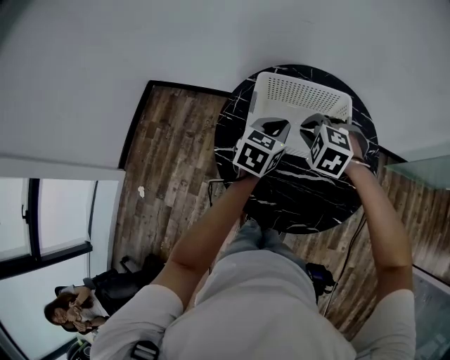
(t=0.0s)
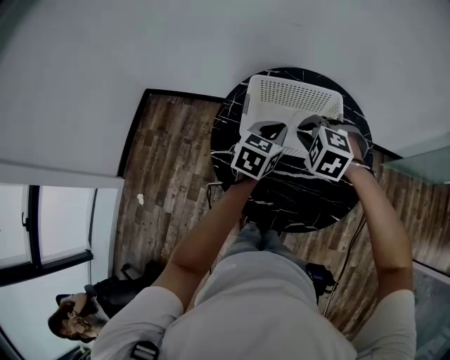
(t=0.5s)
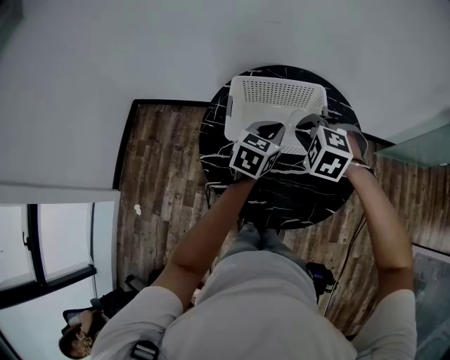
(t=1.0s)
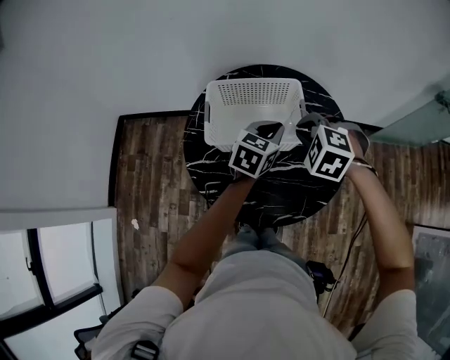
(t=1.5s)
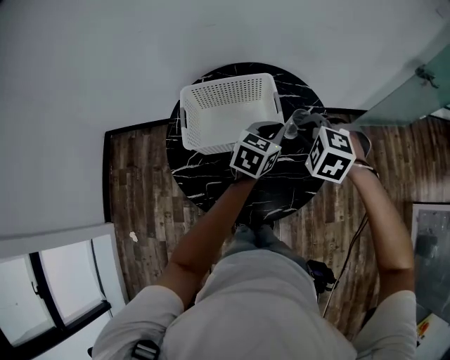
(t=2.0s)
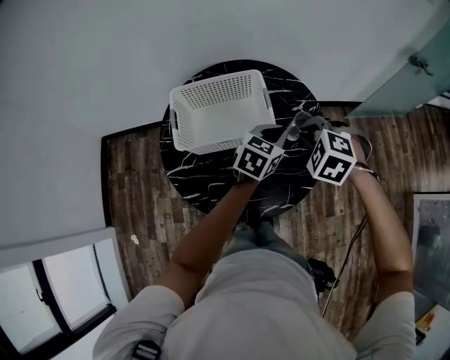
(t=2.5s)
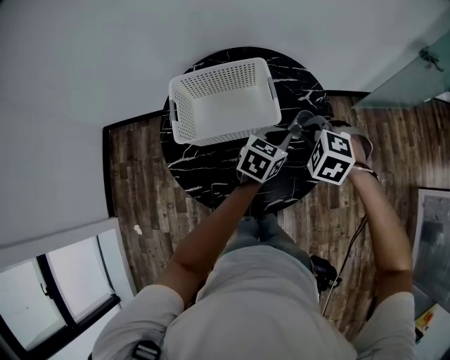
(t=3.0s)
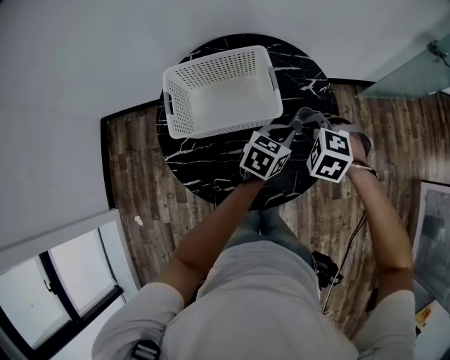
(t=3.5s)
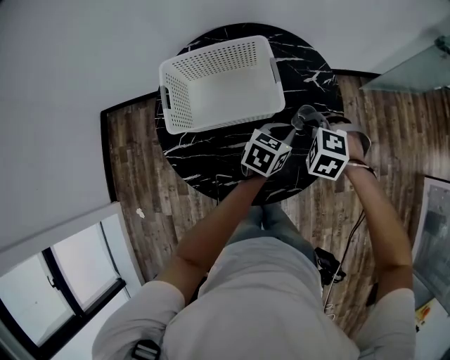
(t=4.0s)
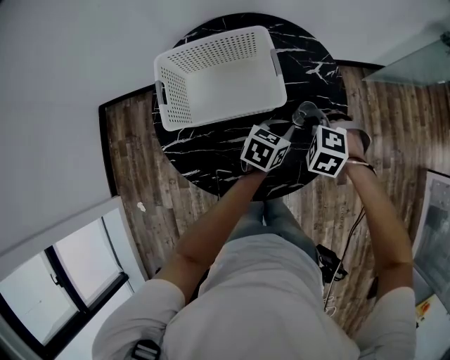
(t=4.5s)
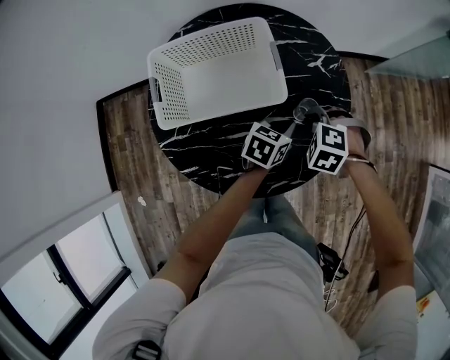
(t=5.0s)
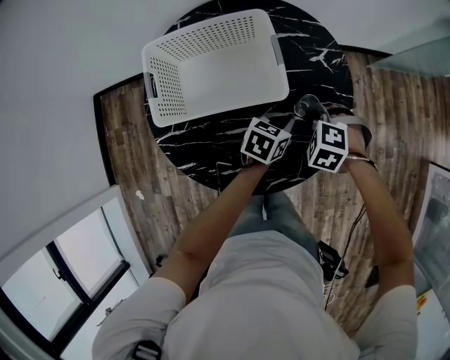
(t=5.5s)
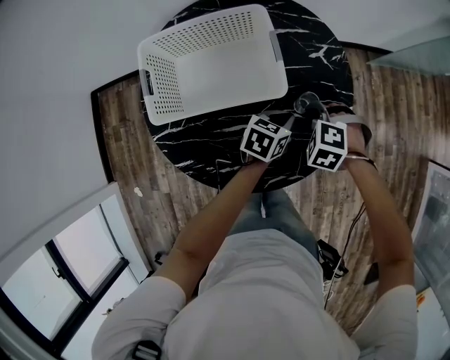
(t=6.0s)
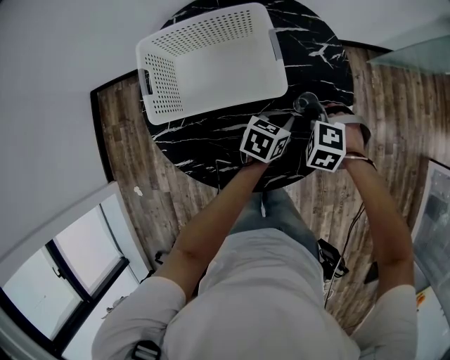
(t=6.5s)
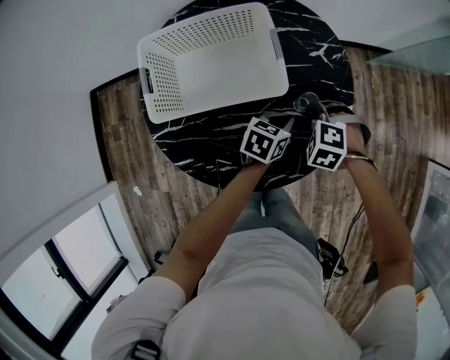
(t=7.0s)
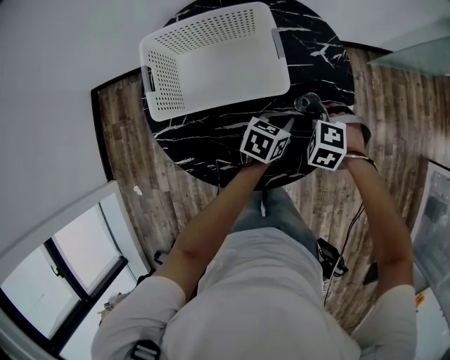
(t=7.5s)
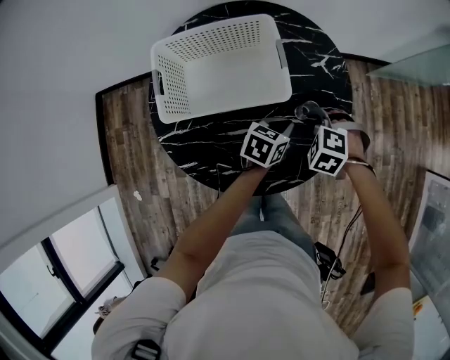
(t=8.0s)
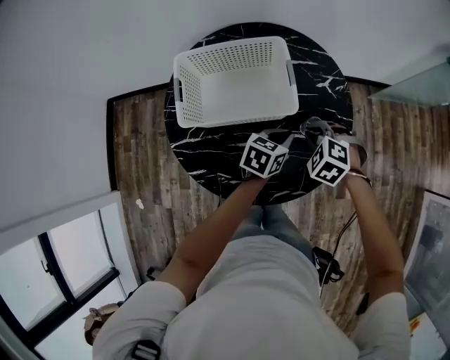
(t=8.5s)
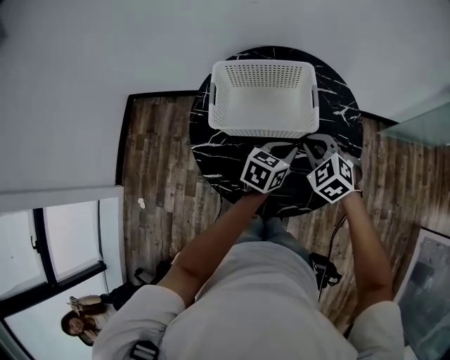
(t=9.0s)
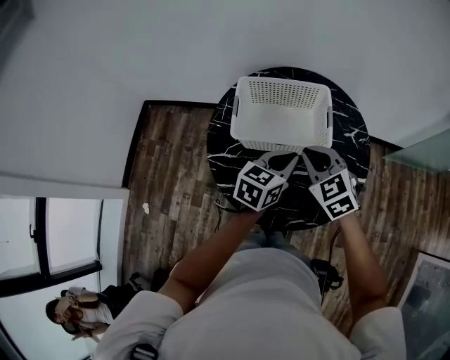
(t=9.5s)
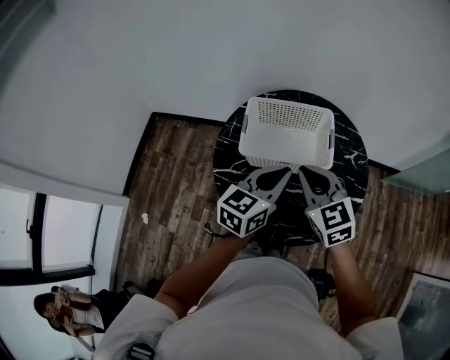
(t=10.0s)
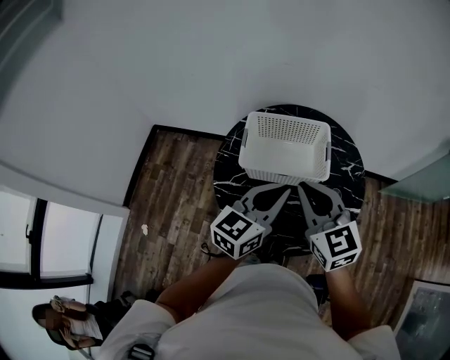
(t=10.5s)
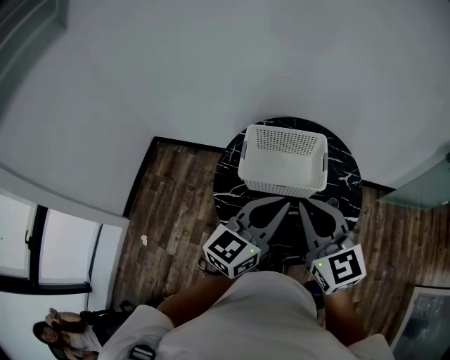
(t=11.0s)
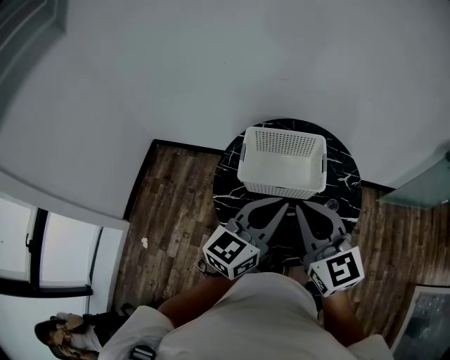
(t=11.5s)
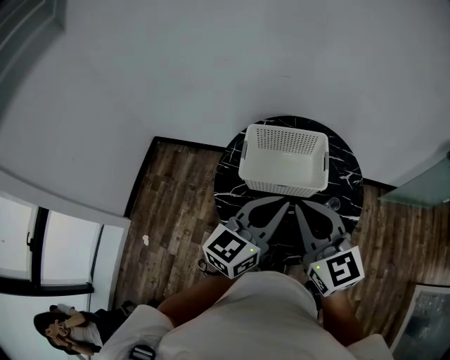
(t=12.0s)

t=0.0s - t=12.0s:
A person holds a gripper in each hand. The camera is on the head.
t=0.0s - t=2.0s: The grippers both shift to the right by approximately 20 cm. The left gripper changes its angle by approximately 20 degrees.
t=2.0s - t=4.0s: The left gripper shifts approximately 15 cm downward and to the right; the right gripper is displaced downward by some 15 cm.
t=4.0s - t=6.0s: The two grippers go some 10 cm downward.
t=6.0s - t=8.0s: The grippers make only small movements.
t=8.0s - t=10.0s: Both grippers move upward and to the left, approximately 35 cm. The left gripper rotates roughly 40 degrees; the right gripper points its fingers approximately 50 degrees further upward.
t=10.0s - t=12.0s: The right gripper goes approximately 15 cm upward and backward, while the left gripper is displaced upward by about 10 cm.

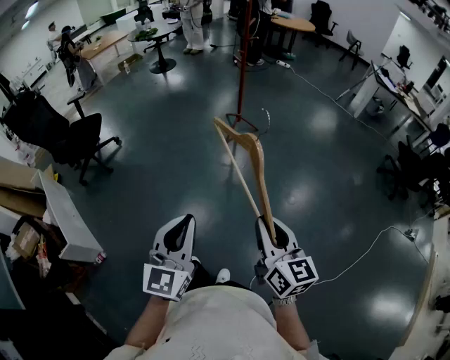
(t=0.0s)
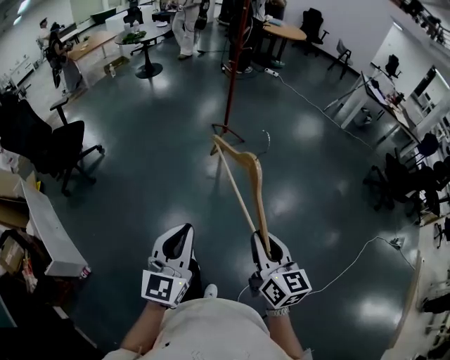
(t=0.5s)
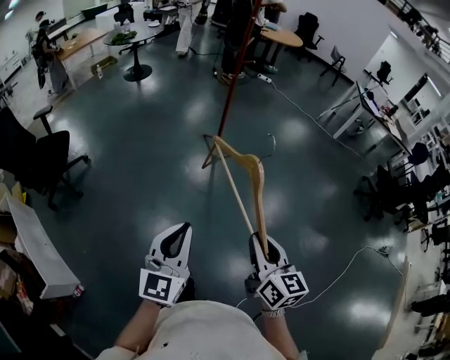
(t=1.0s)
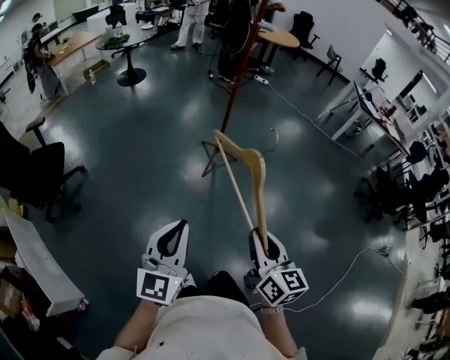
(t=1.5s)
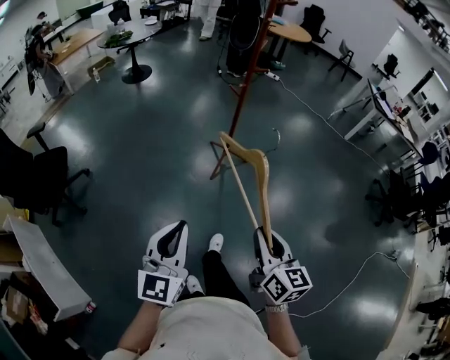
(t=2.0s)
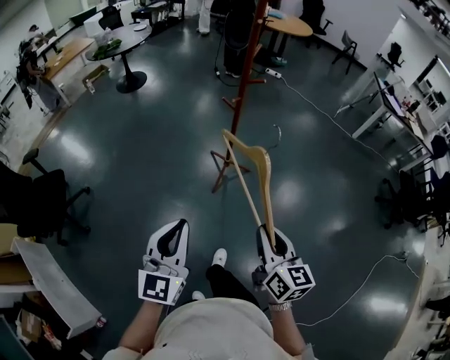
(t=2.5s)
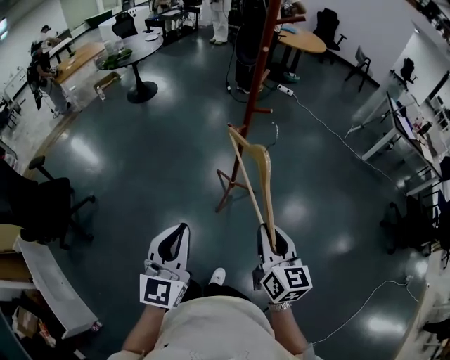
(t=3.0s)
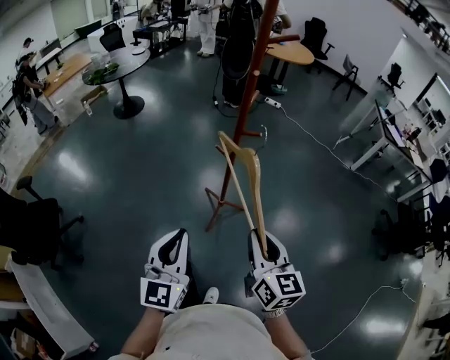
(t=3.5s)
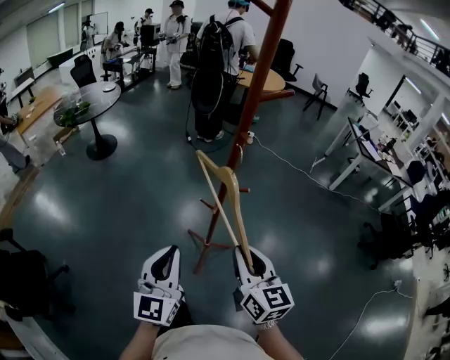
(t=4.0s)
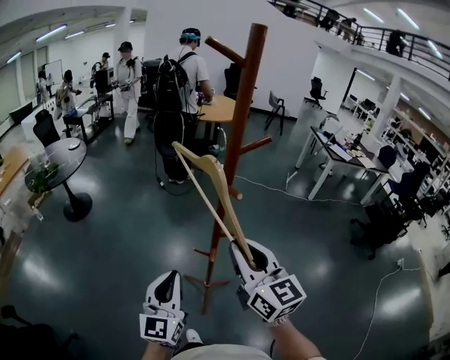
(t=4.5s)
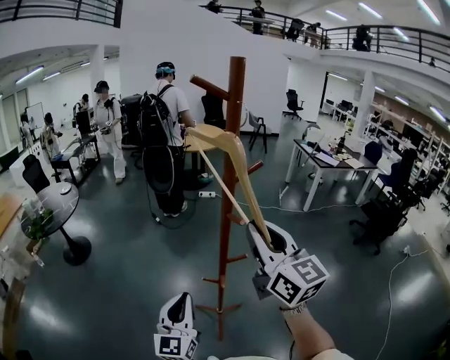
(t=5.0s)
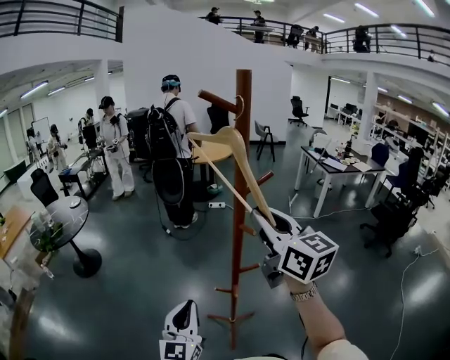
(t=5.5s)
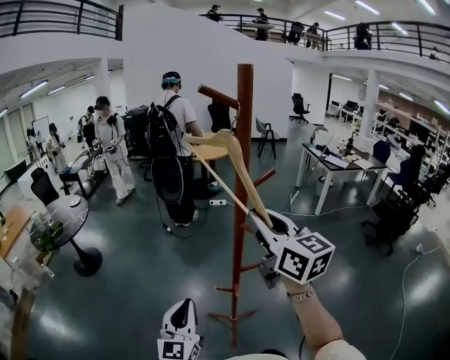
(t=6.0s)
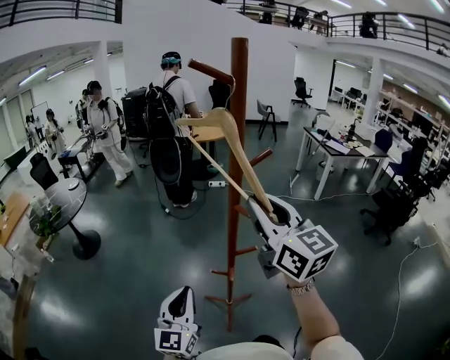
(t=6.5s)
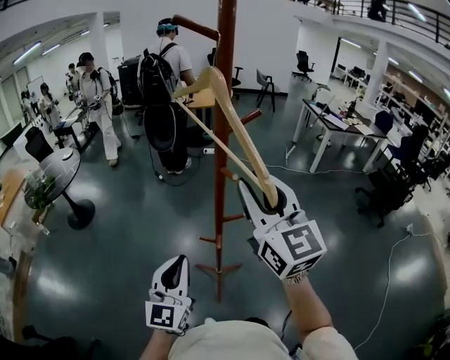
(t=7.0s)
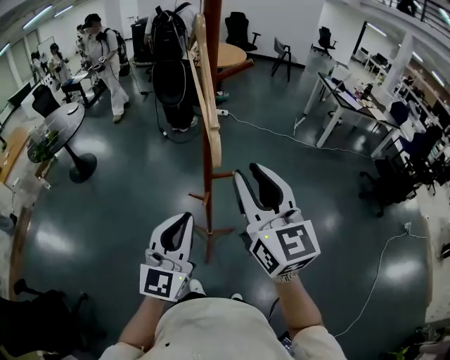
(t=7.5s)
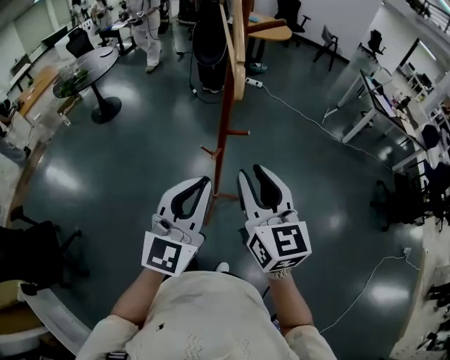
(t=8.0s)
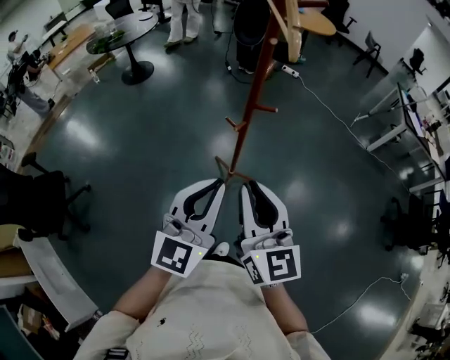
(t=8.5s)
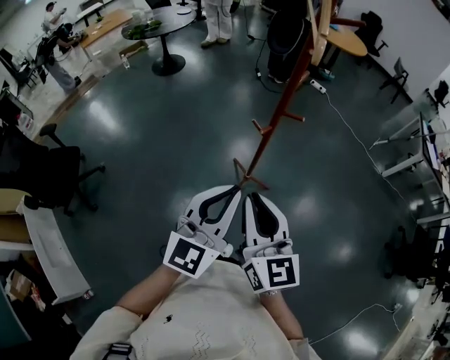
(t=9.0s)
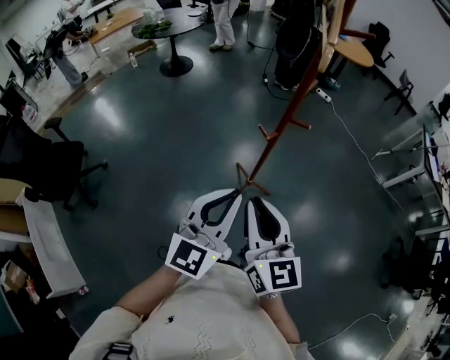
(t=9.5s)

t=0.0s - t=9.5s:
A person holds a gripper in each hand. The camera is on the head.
t=0.0s - t=2.0s: The pair of grippers is taken forward, about 50 cm.
t=2.0s - t=4.0s: The two grippers travel together, forward, roughly 50 cm.
t=4.0s - t=5.5s: The right gripper moves upward and forward, about 30 cm. Meanwhile the left gripper moves forward, some 15 cm.
t=5.5s - t=7.5s: The right gripper is displaced backward, downward and to the right by about 15 cm. The left gripper shifts about 15 cm to the right and backward.
t=7.5s - t=9.5s: The left gripper changes place by roughly 15 cm, and swivels about 20 degrees; the right gripper shifts by roughly 25 cm, and swivels approximately 30 degrees.

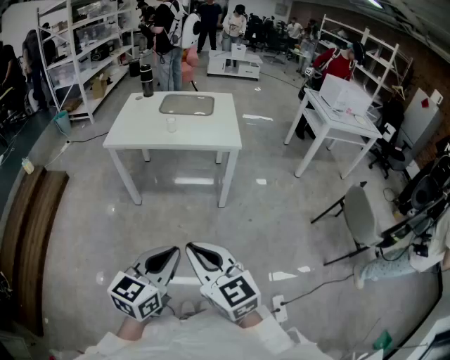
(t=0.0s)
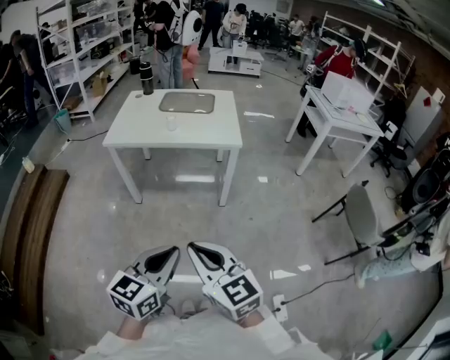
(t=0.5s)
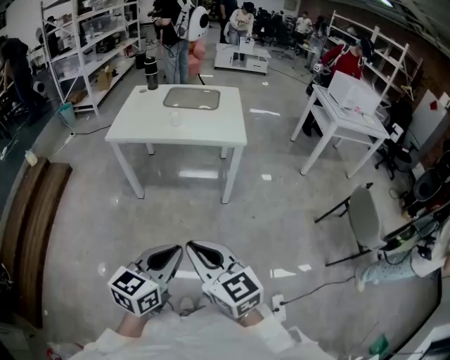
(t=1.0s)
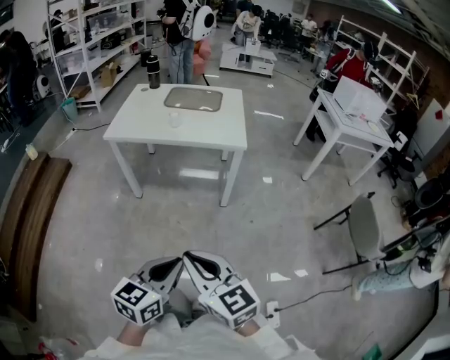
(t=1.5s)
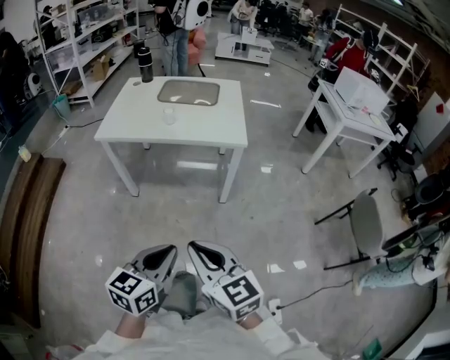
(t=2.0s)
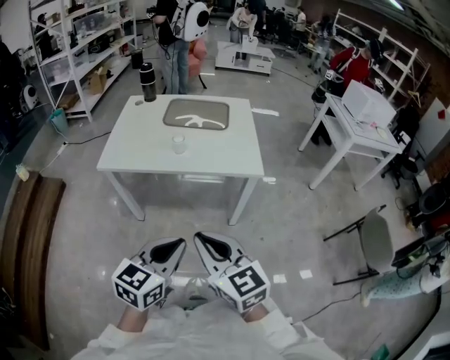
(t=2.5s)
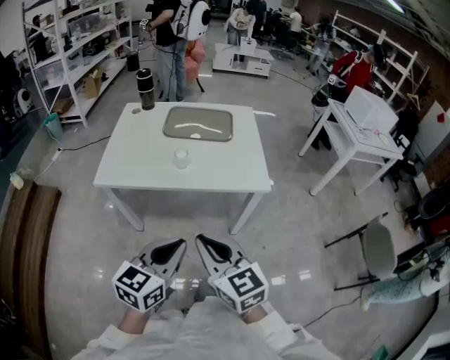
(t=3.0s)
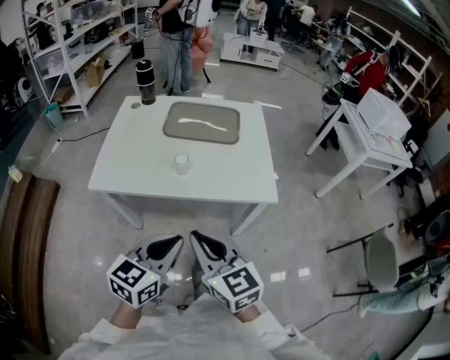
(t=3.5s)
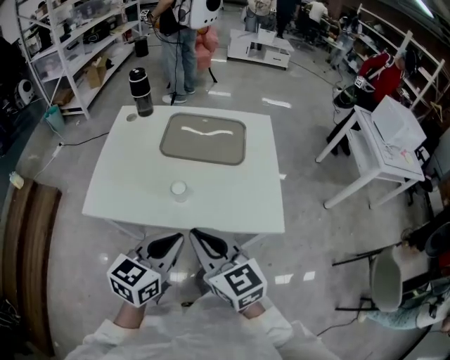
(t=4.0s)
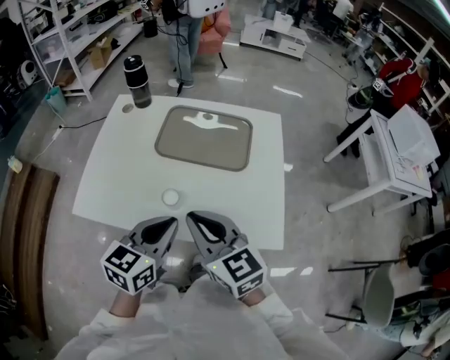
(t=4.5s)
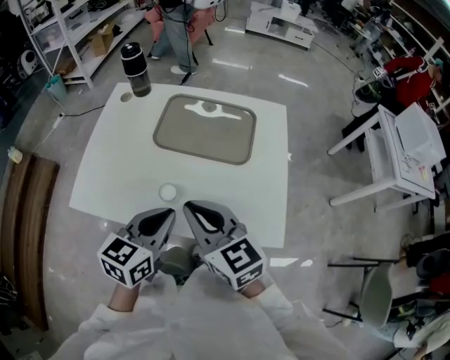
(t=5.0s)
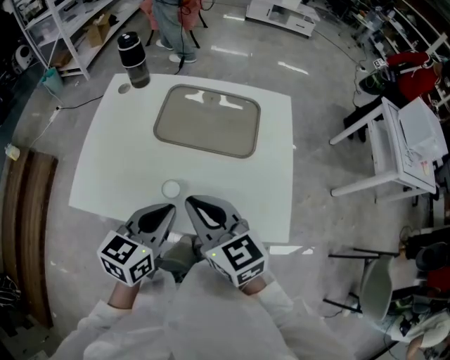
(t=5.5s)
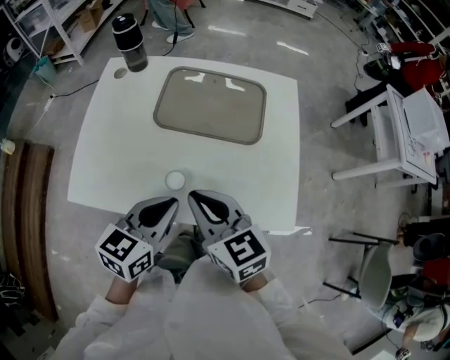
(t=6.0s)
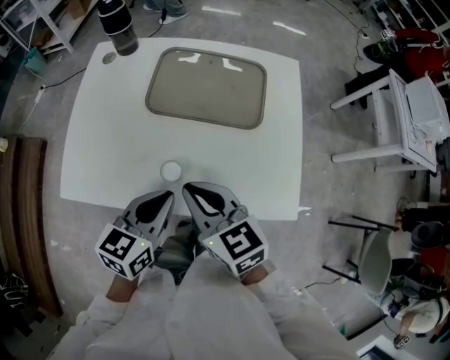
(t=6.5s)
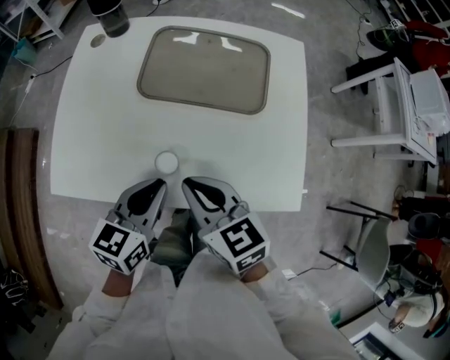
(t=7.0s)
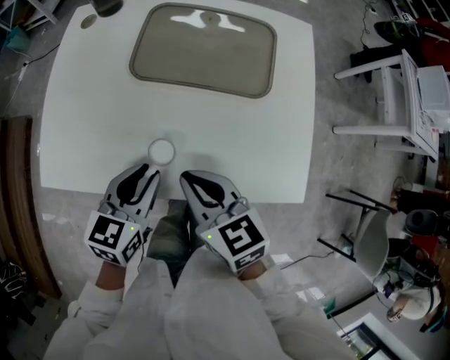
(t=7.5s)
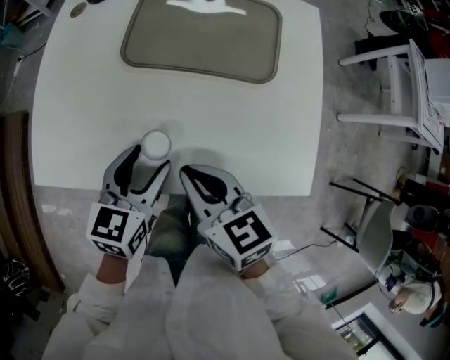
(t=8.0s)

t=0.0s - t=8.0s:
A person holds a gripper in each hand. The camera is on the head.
t=0.0s - t=2.0s: The left gripper moves forward and downward, approximately 15 cm, while the right gripper shifts some 10 cm forward.
t=2.0s - t=4.0s: The two grippers travel together, forward, approximately 50 cm.
t=4.0s - t=6.0s: Both grippers travel together forward, about 15 cm.
t=6.0s - t=8.0s: Both grippers move downward, approximately 10 cm. The left gripper opens.
